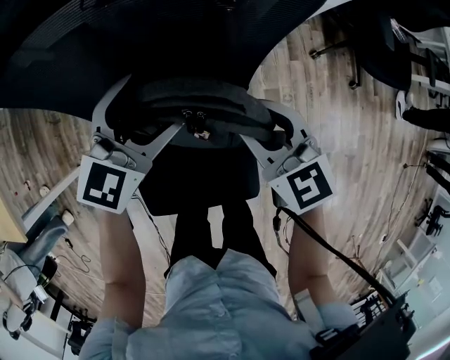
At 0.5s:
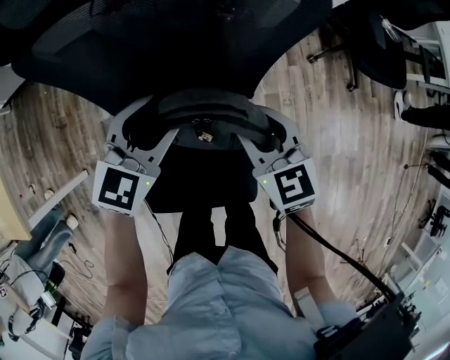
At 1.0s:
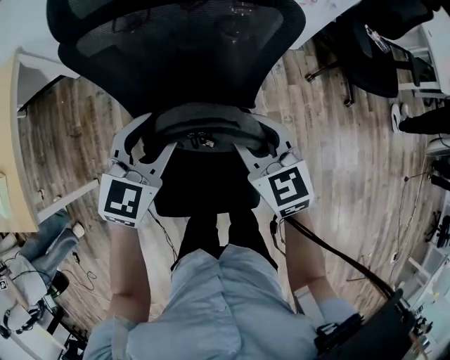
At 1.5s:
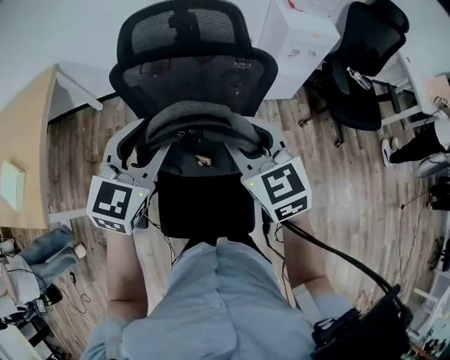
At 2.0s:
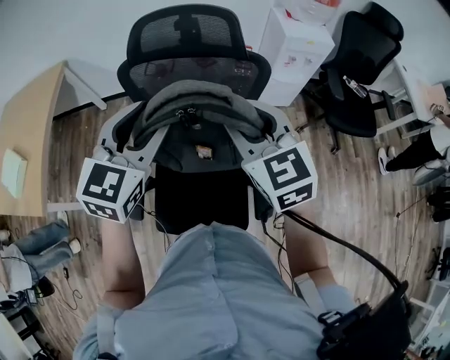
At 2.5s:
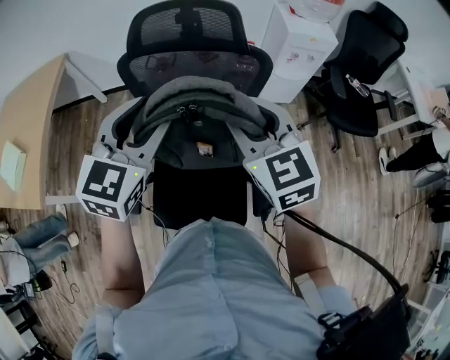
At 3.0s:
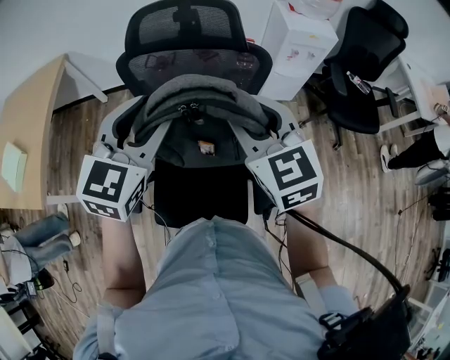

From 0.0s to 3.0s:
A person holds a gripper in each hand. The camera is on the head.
From 0.0s to 1.5s: The right gripper travels upward by approximately 20 cm, while the left gripper goes some 25 cm upward and backward, and closes.
From 1.5s to 3.0s: The left gripper moves some 5 cm. The right gripper heads upward, covering approximately 5 cm.

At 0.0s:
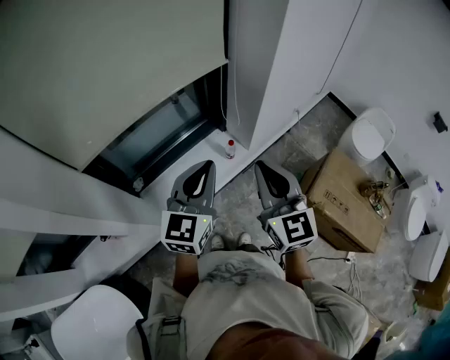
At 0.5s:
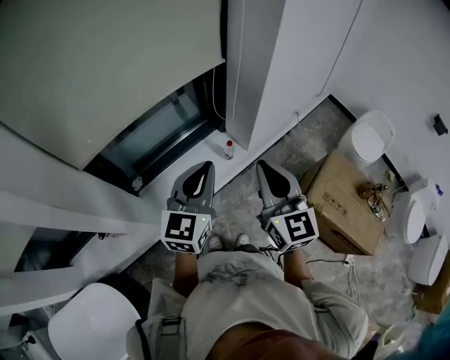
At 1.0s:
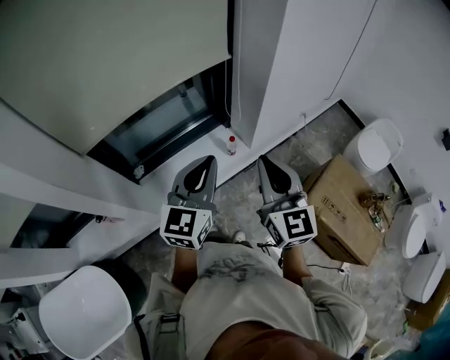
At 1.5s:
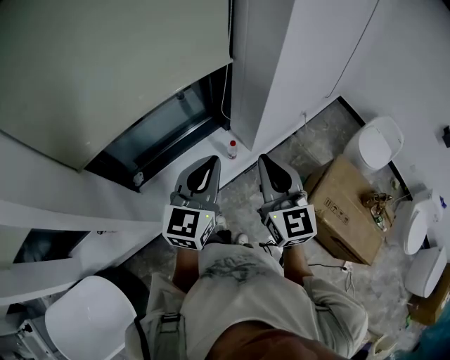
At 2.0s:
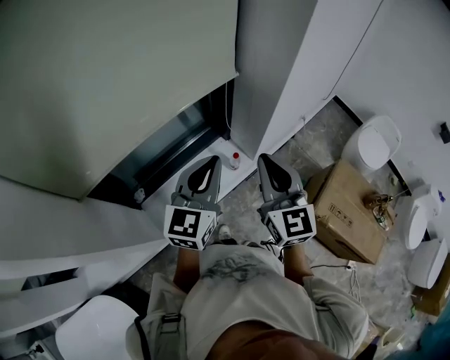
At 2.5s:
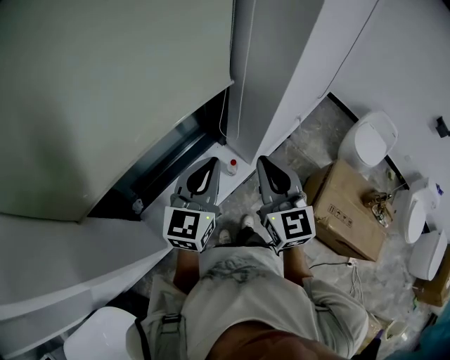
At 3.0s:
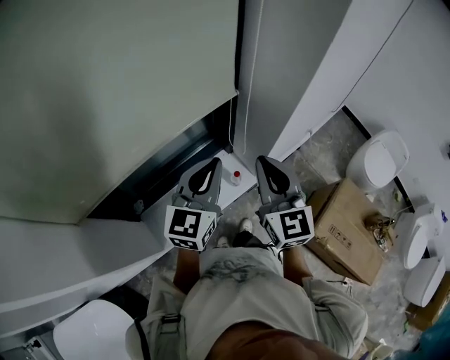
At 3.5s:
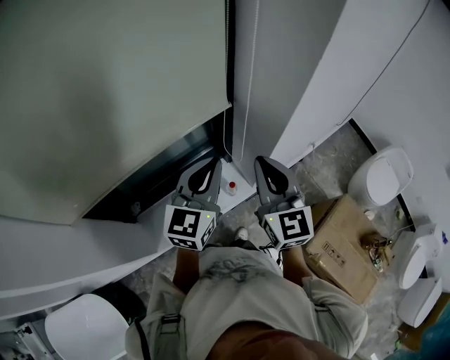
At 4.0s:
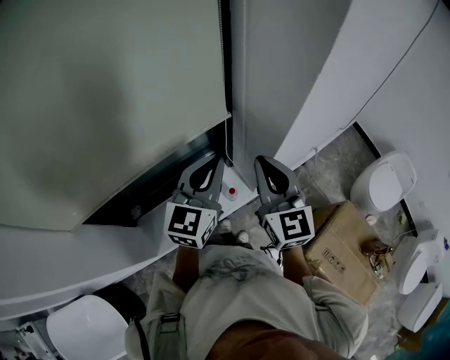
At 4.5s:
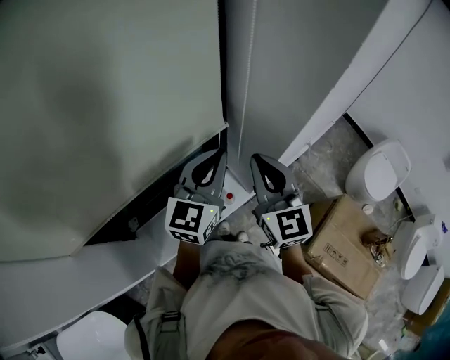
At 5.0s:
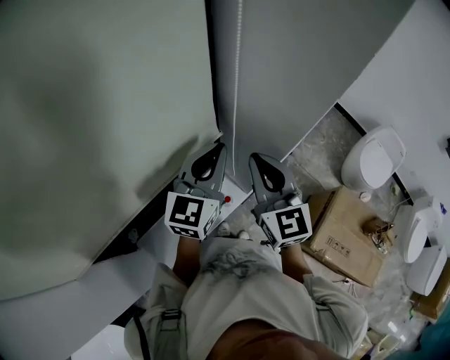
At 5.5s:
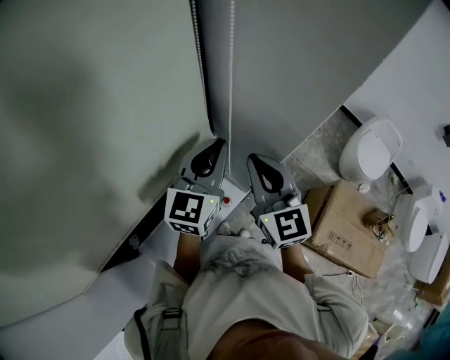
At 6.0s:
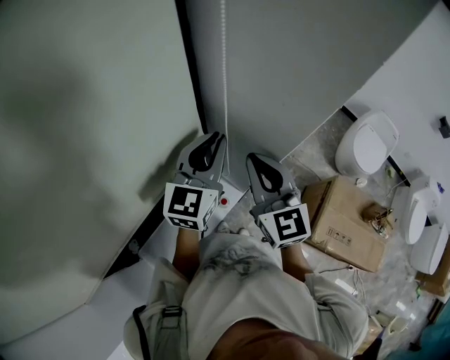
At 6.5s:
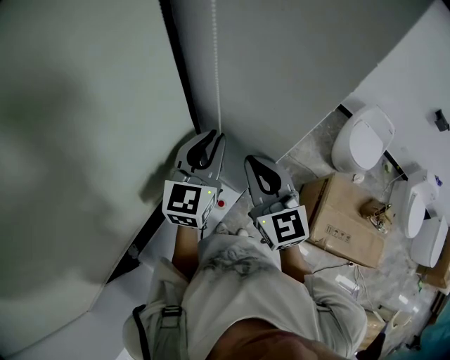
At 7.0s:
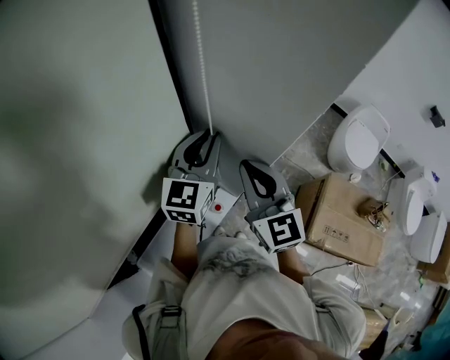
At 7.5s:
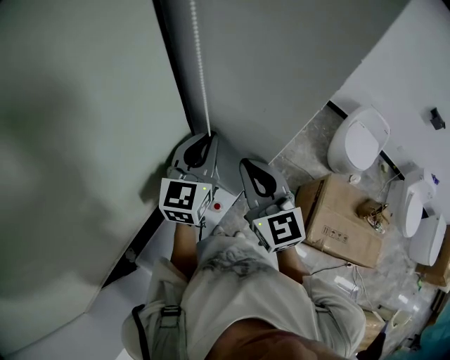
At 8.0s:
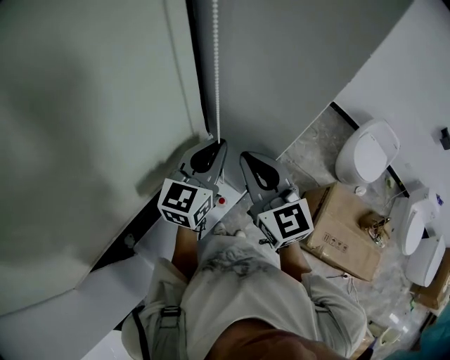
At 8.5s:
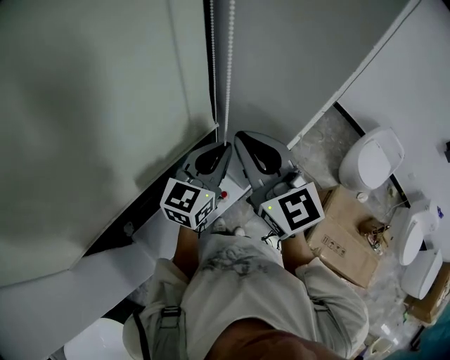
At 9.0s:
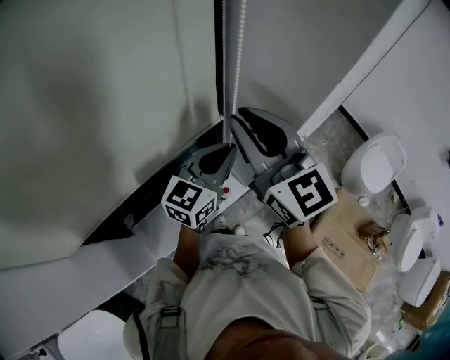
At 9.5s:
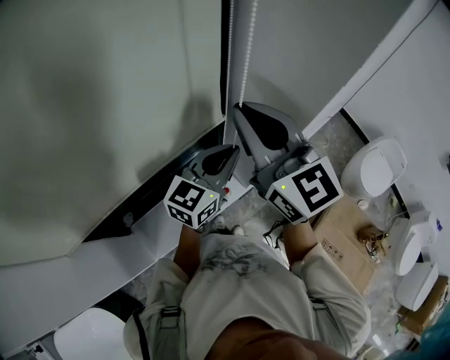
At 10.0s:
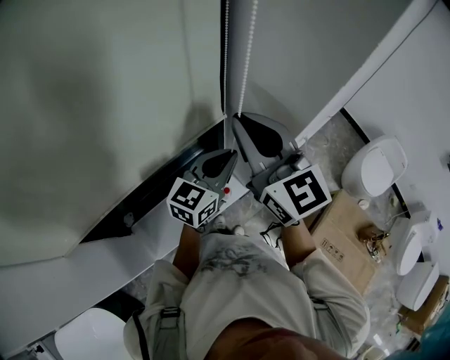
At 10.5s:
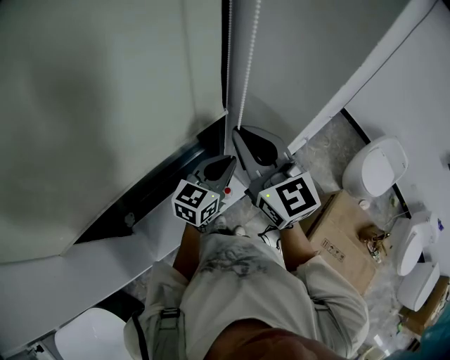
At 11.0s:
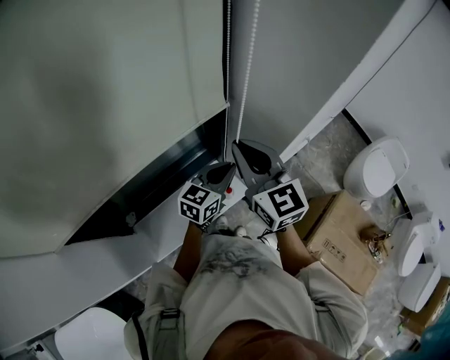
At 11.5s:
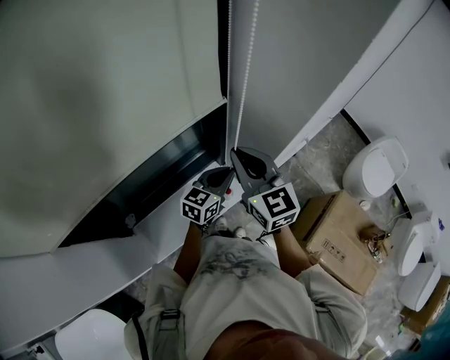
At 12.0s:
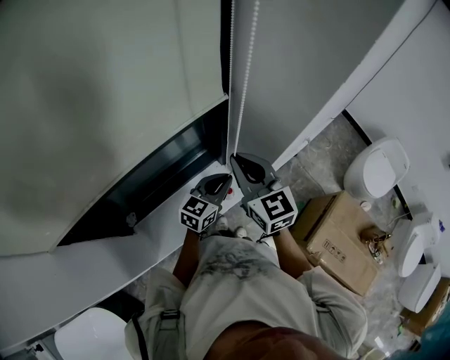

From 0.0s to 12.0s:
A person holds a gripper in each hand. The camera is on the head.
From 0.0s to 2.0s: Both grippers travel together forward, about 10 cm.
From 2.0s to 4.0s: Both grippers move forward, roughly 20 cm.
From 4.0s to 6.0s: The right gripper goes about 10 cm forward; the left gripper goes about 15 cm forward.
From 6.0s to 8.0s: There are only small adjustments of the grippers.
From 8.0s to 10.0s: The left gripper goes roughly 5 cm backward, while the right gripper goes roughly 10 cm upward.
From 10.0s to 12.0s: The grippers both shift downward by about 15 cm.

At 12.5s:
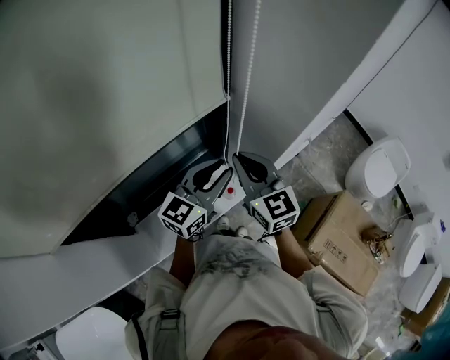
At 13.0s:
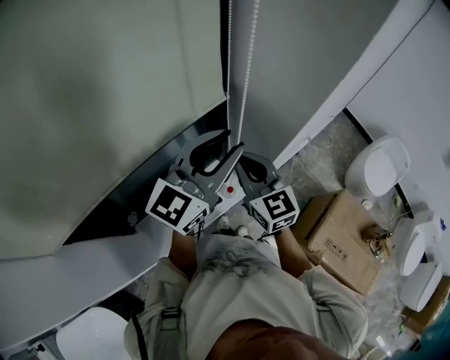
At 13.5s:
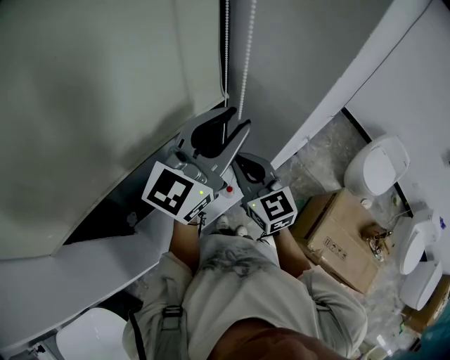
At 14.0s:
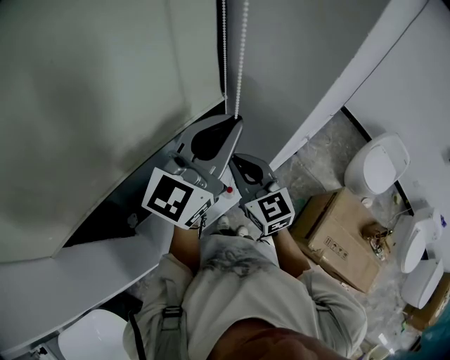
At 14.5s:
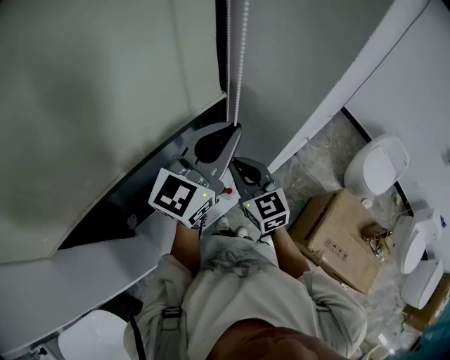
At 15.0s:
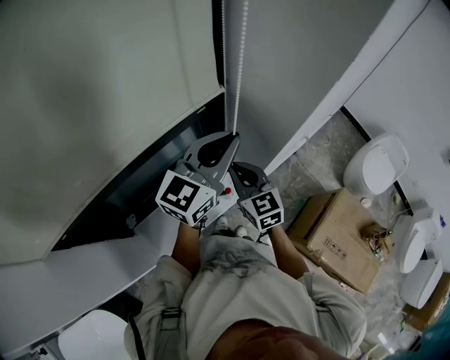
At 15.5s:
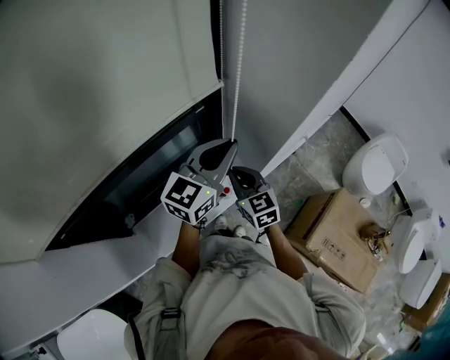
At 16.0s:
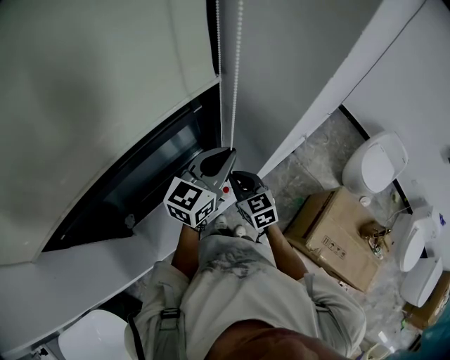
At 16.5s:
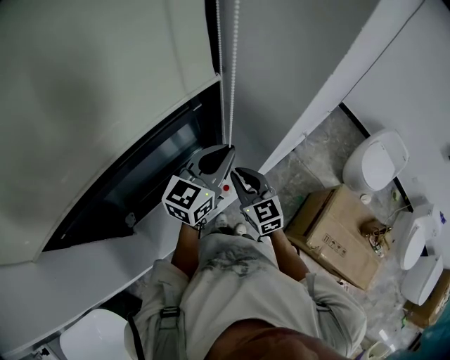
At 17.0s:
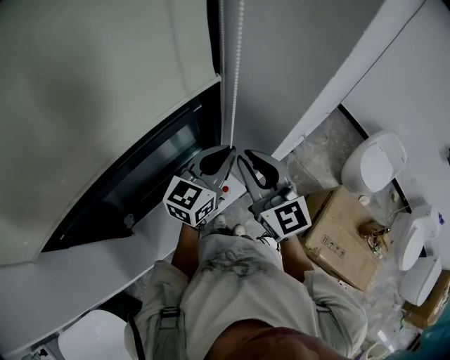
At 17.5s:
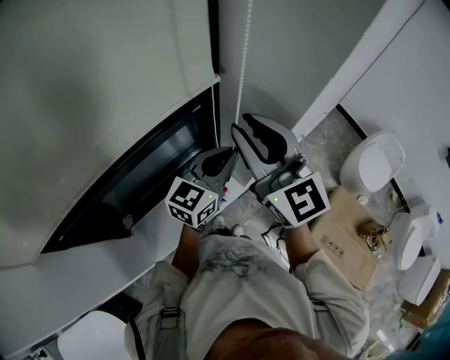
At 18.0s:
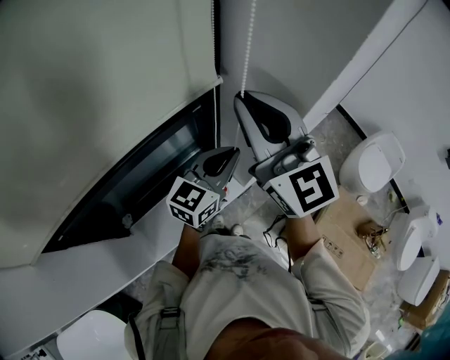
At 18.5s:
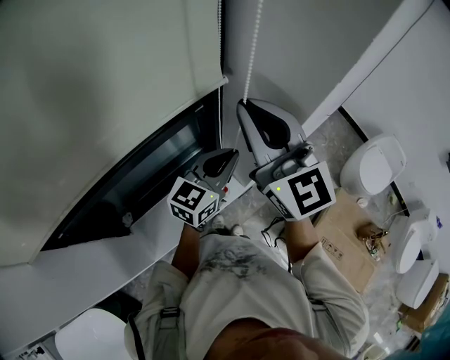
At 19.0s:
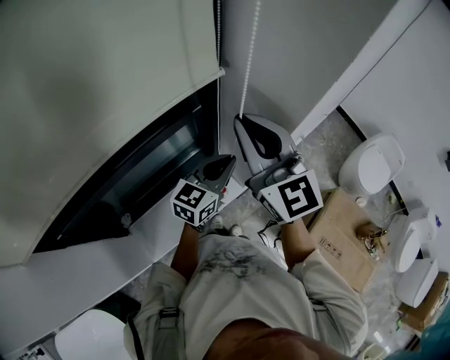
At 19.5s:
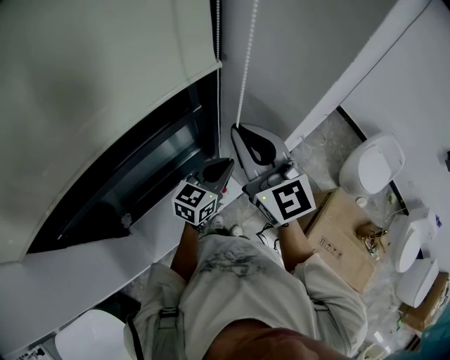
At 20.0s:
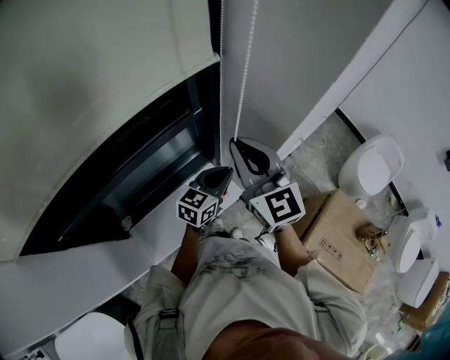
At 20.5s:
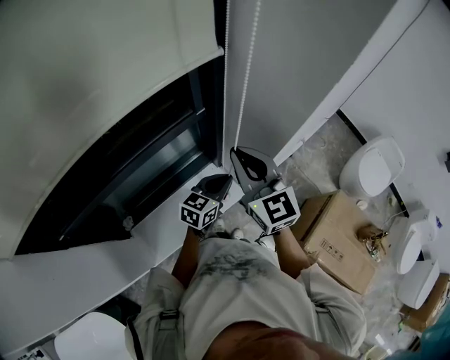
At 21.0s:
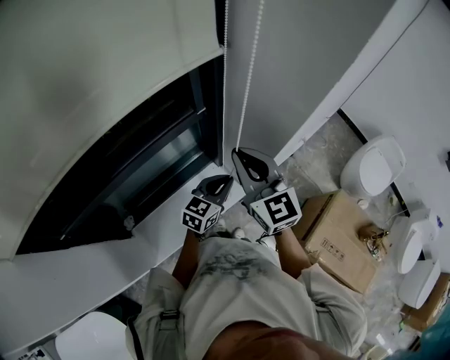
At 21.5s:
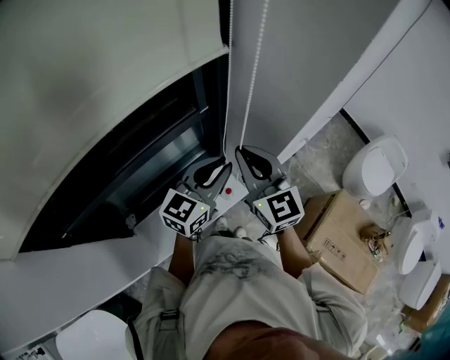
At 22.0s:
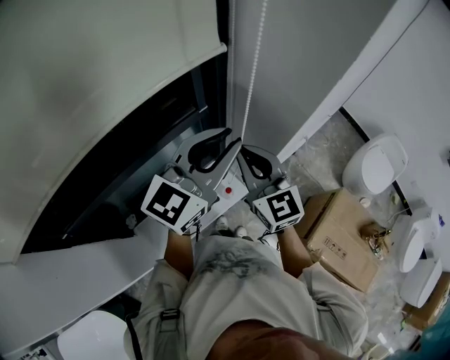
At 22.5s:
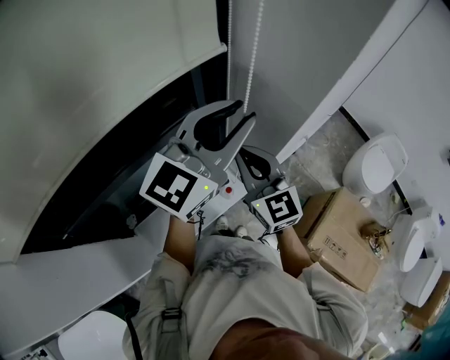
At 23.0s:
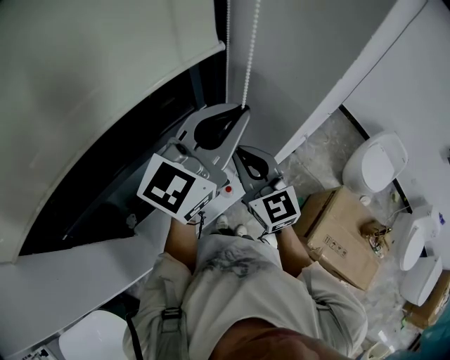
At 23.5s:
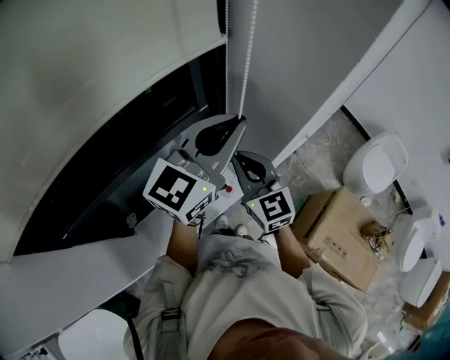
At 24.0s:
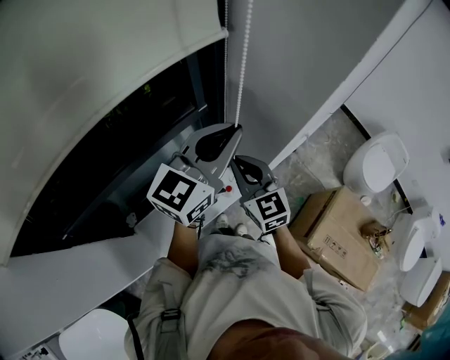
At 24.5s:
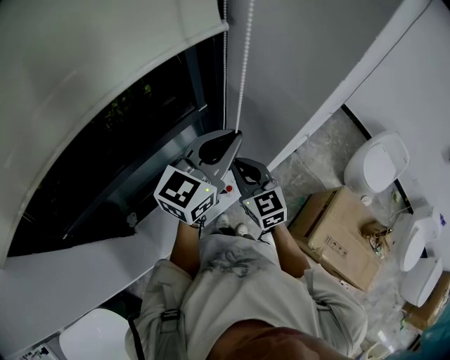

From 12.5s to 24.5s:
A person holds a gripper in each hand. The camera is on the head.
From 12.5s to 14.5s: The left gripper shifts about 15 cm upward, and closes its fingers.
From 14.5s to 16.5s: The right gripper moves downward, roughly 10 cm. Meanwhile the left gripper shifts roughly 10 cm downward.
From 16.5s to 18.5s: The right gripper moves upward, some 30 cm, and turns by roughly 30 degrees.
From 18.5s to 20.5s: The two grippers go roughly 15 cm downward.
From 20.5s to 22.5s: The left gripper is displaced upward by some 35 cm, swivels roughly 40 degrees, and opens.
From 22.5s to 24.5s: Both grippers travel together downward, roughly 10 cm. The left gripper closes its fingers.
